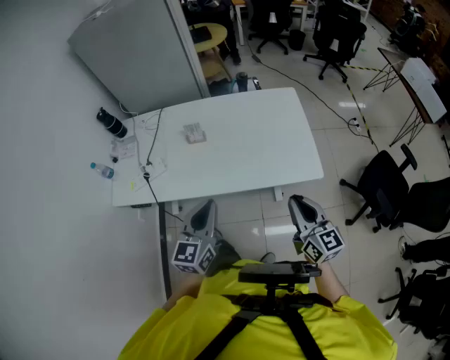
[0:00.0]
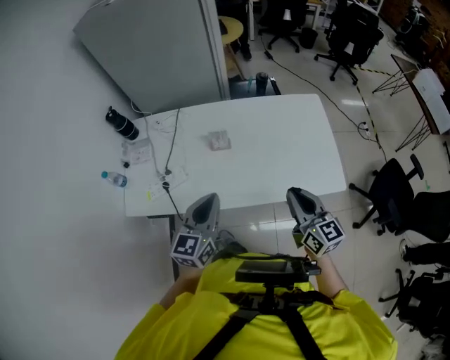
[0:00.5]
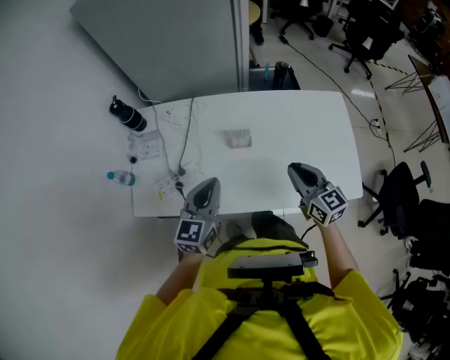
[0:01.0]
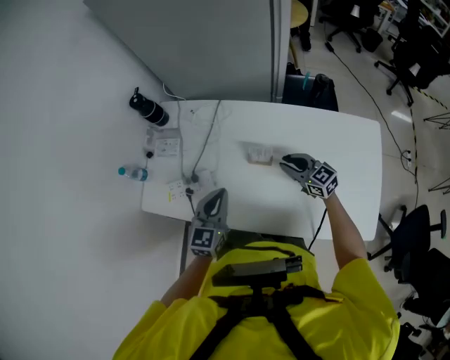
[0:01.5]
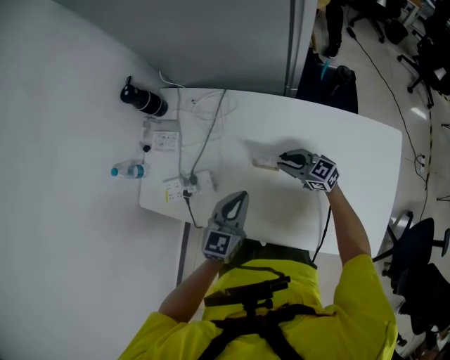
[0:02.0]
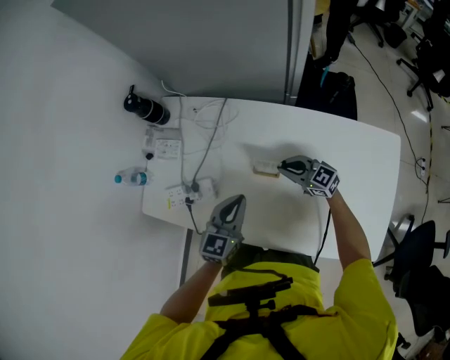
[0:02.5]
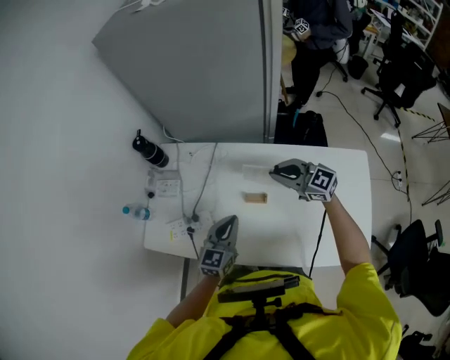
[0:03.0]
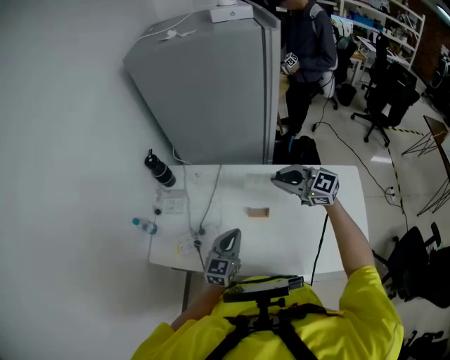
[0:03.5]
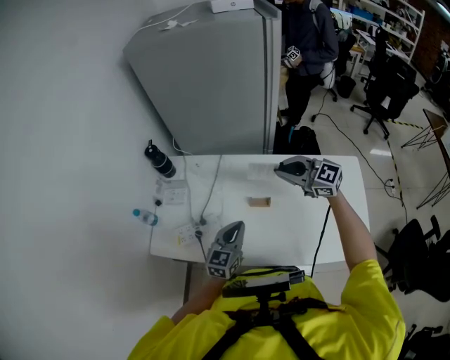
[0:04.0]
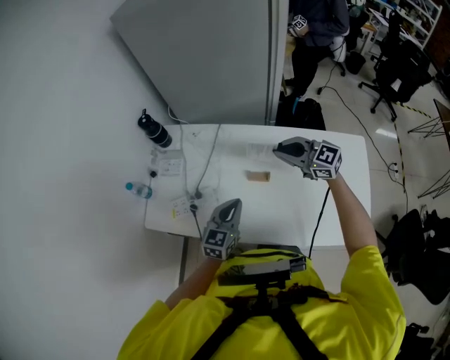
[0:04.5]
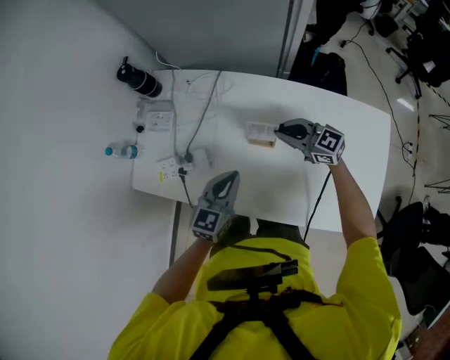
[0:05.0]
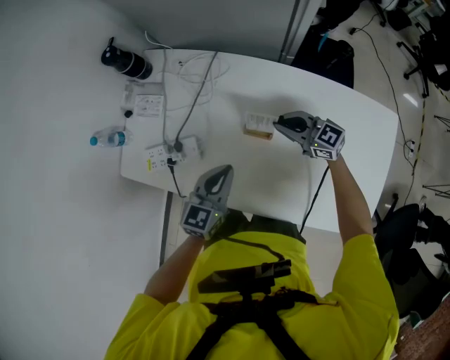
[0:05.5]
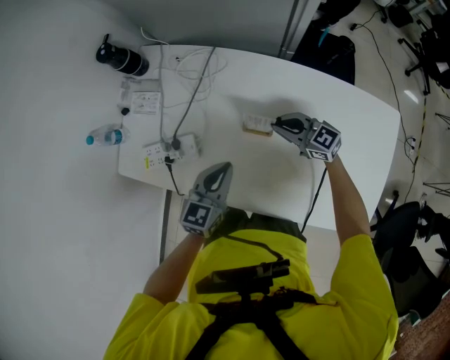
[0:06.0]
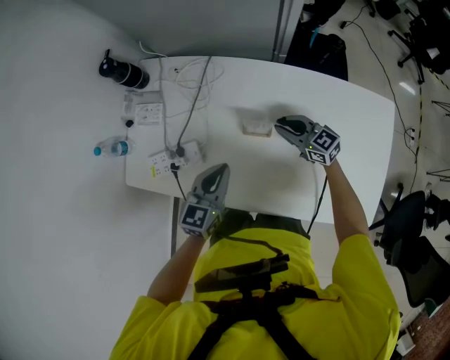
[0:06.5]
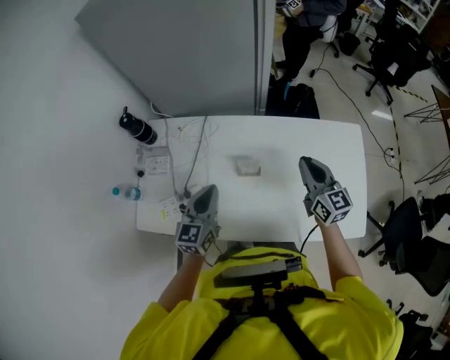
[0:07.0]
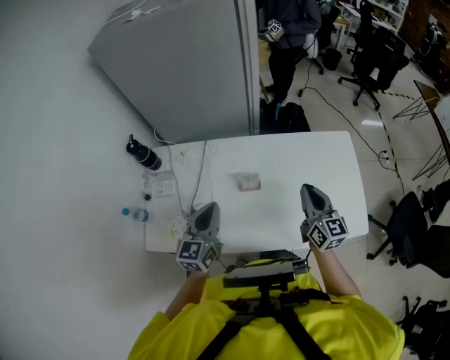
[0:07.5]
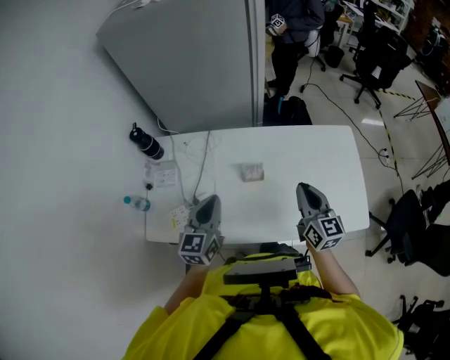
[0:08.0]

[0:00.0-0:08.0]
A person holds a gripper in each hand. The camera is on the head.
0:00.0 to 0:02.0: The left gripper ends up approximately 40 cm from where it was. The right gripper ends up roughly 60 cm from where it was, and swivels roughly 60 degrees.
0:02.0 to 0:04.0: The left gripper travels upward and to the left by about 10 cm. Meanwhile the right gripper goes some 30 cm upward, and turns by roughly 20 degrees.
0:04.0 to 0:06.0: The left gripper goes some 10 cm downward. The right gripper moves downward, about 30 cm, and changes its angle by roughly 20 degrees.
0:06.0 to 0:08.0: The grippers both shift upward by roughly 20 cm. The right gripper rotates some 70 degrees.

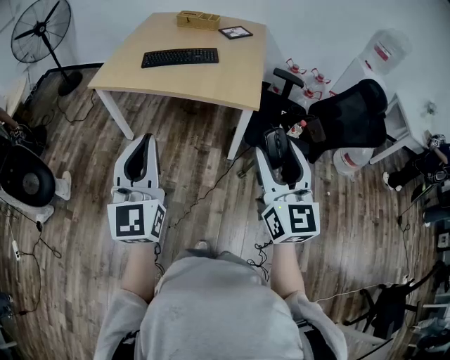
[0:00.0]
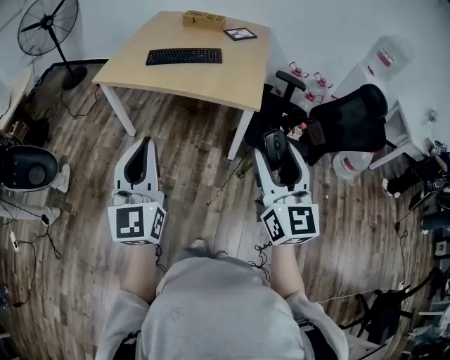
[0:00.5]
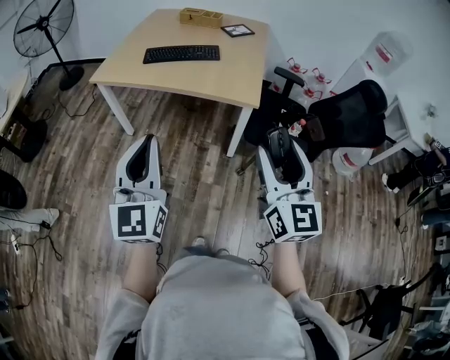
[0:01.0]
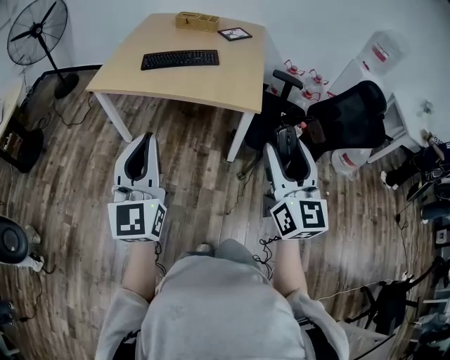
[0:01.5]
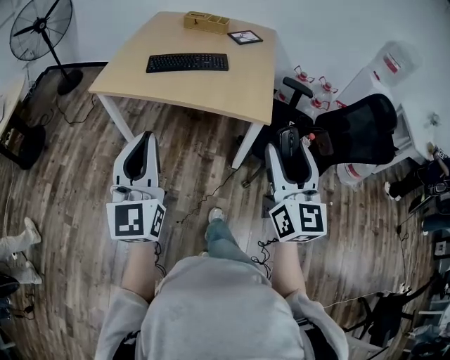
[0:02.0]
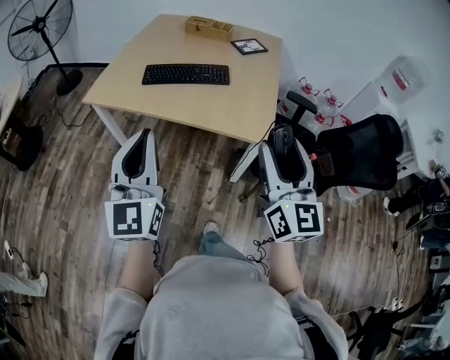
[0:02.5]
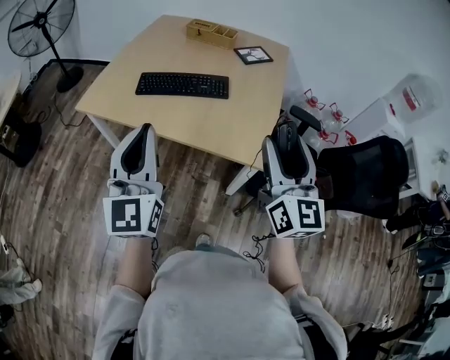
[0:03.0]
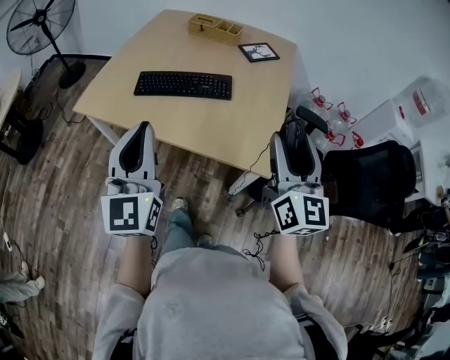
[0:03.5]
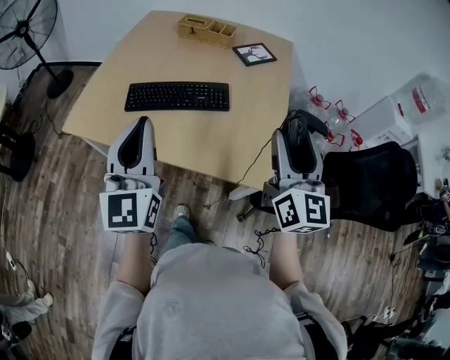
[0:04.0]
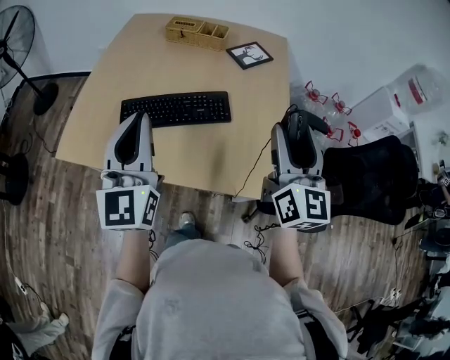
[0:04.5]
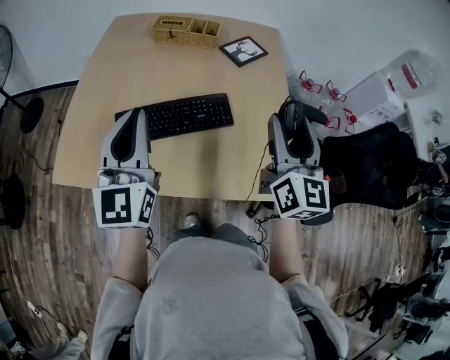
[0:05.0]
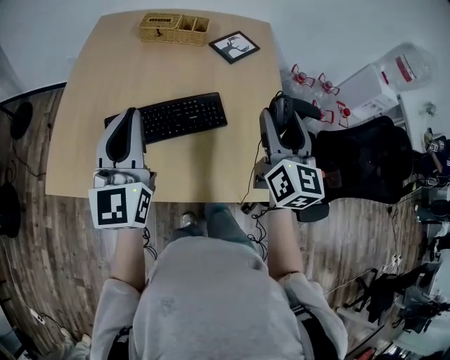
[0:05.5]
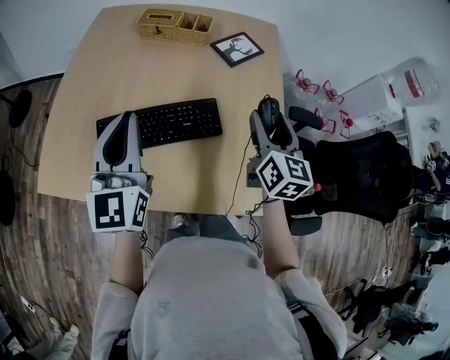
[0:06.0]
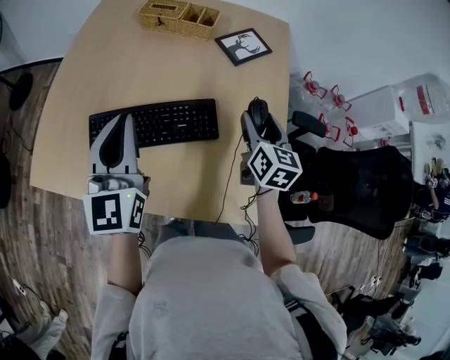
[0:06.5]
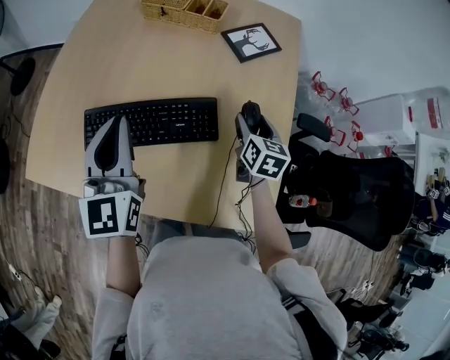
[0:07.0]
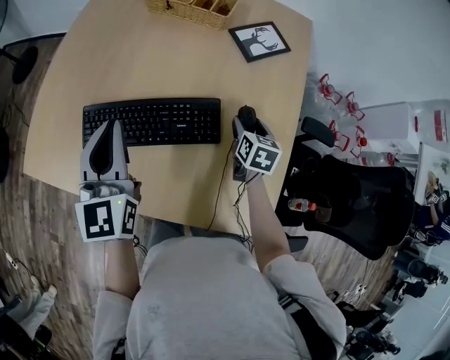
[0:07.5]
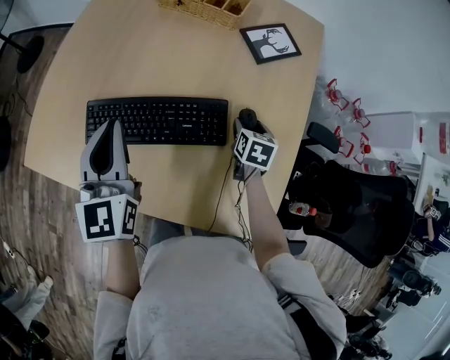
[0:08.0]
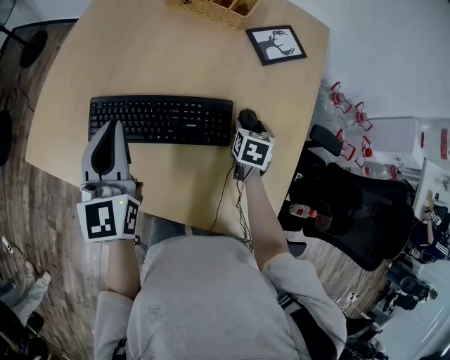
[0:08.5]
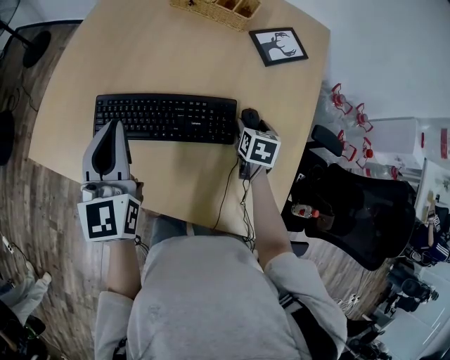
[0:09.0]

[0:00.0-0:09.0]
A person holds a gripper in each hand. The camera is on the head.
0:00.0 to 0:02.0: Both grippers travel together forward, about 10 cm.
0:02.0 to 0:04.5: Both grippers are carried forward, about 50 cm.
0:04.5 to 0:07.0: The right gripper shifts about 35 cm downward and forward, and points its fingers approximately 40 degrees further downward. The left gripper shifts some 20 cm forward and downward.
0:07.0 to 0:09.0: The right gripper heads downward, covering about 10 cm. Meanwhile the left gripper changes place by approximately 5 cm.

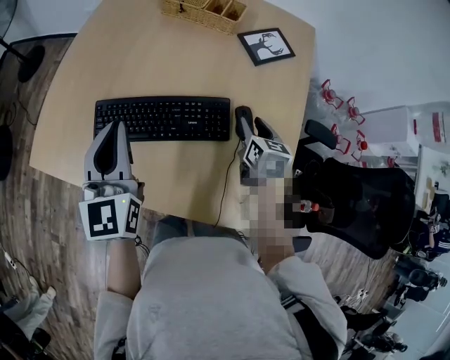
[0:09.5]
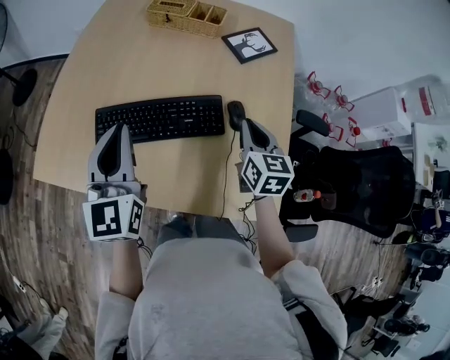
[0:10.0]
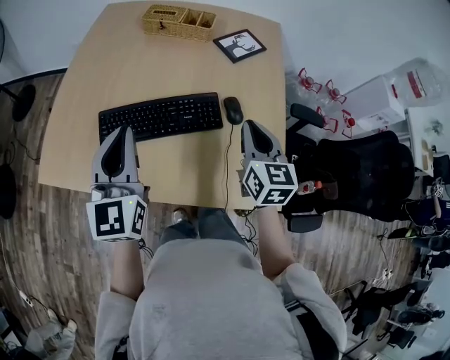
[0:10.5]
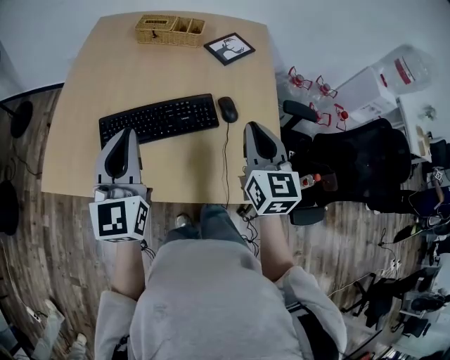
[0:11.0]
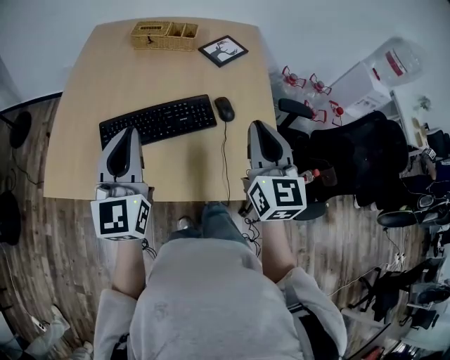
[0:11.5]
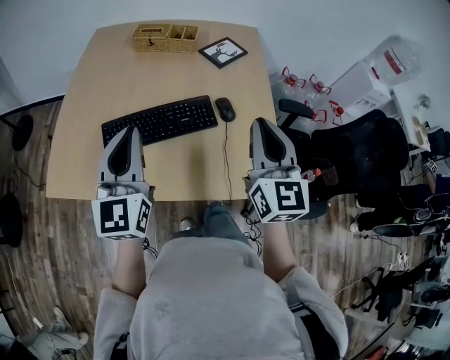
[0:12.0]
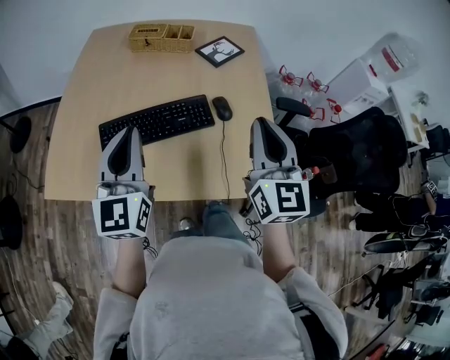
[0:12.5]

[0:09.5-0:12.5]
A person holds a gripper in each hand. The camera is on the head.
0:09.5 to 0:11.0: The left gripper shifts roughly 10 cm backward and upward; the right gripper is displaced upward and backward by about 25 cm, swivels approximately 30 degrees, and closes.
0:11.0 to 0:12.5: The right gripper is displaced upward and backward by about 10 cm.

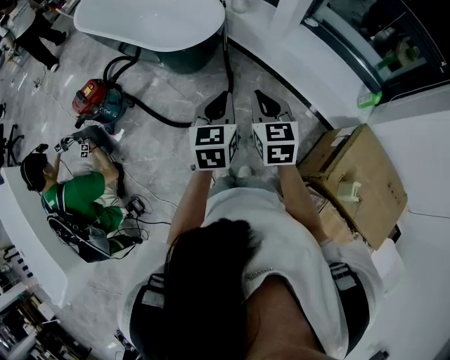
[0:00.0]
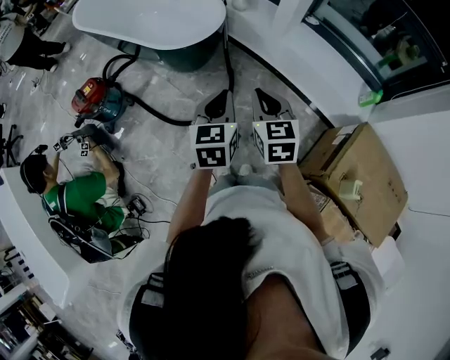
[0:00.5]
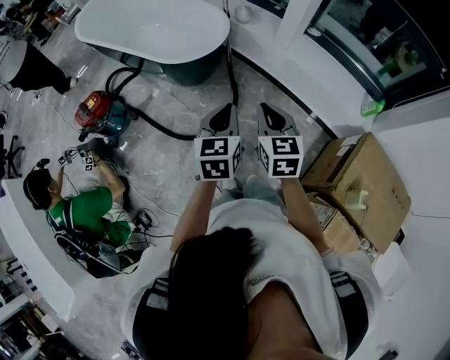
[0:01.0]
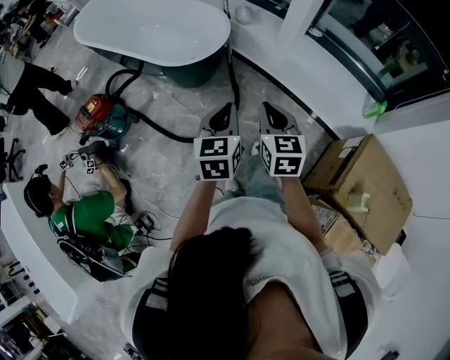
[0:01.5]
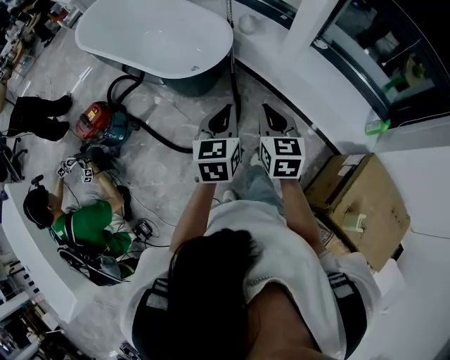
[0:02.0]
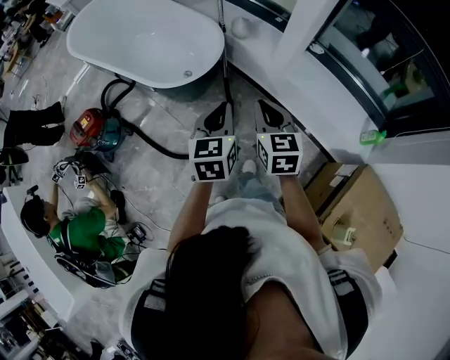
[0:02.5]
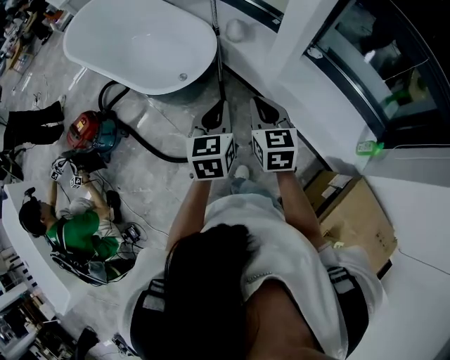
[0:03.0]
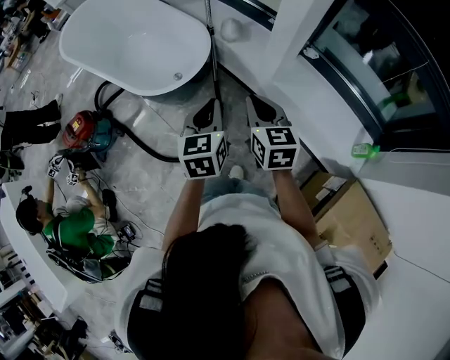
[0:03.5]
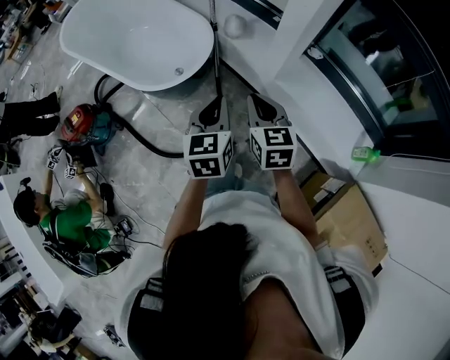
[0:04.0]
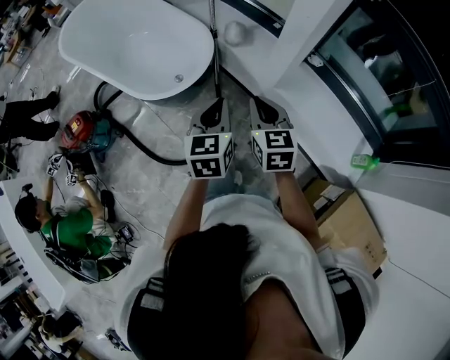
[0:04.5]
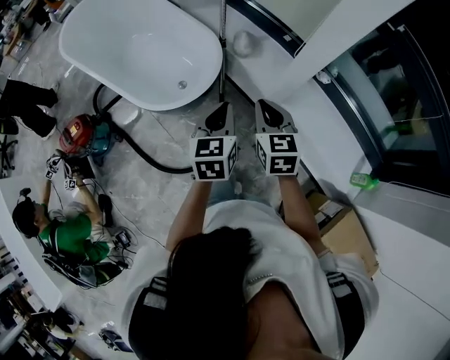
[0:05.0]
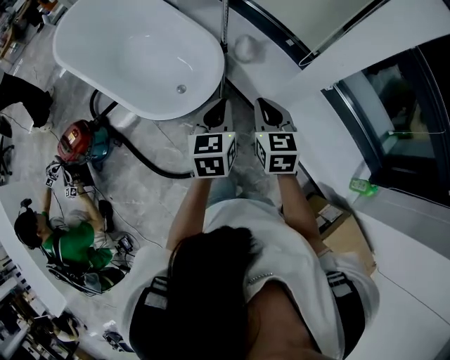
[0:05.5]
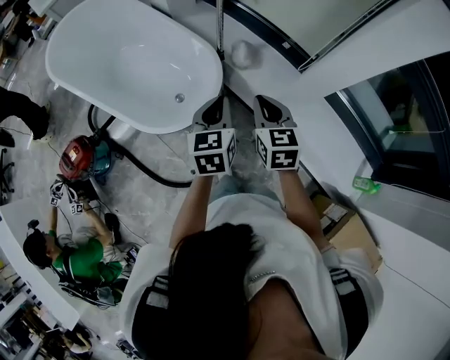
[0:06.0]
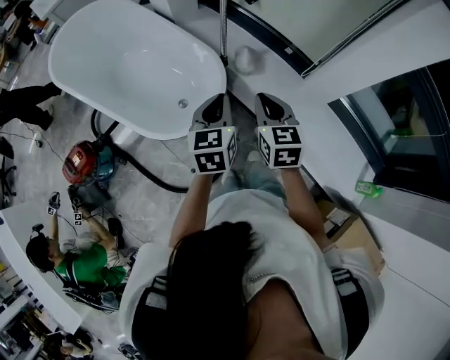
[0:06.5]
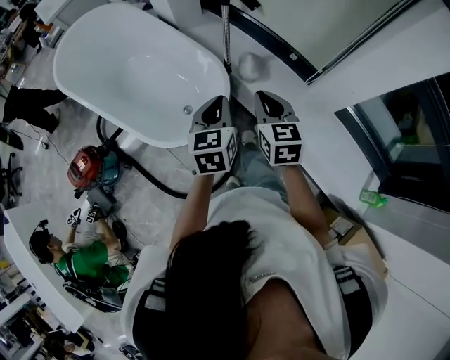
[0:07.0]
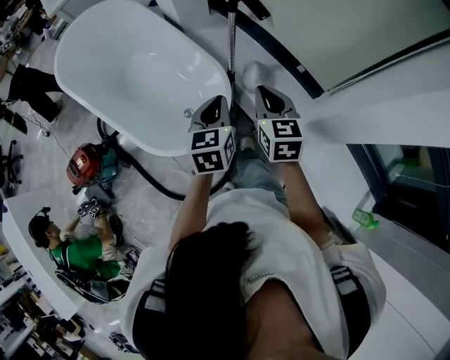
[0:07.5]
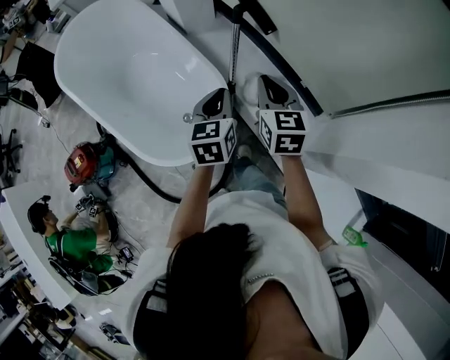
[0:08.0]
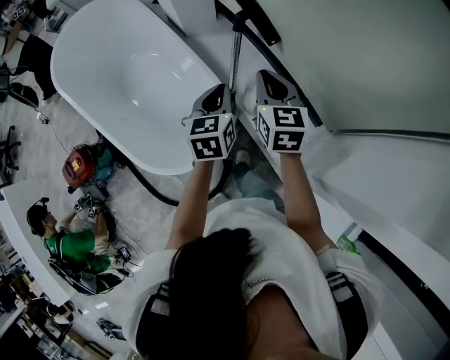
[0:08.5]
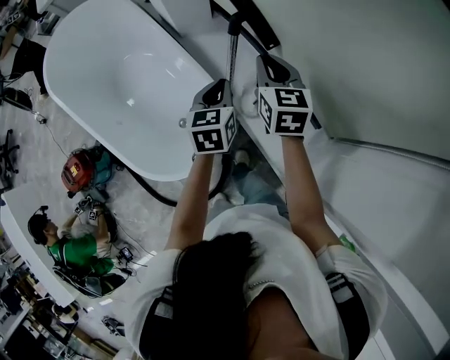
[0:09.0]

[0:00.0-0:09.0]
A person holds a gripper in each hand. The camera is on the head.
0:00.0 to 0:02.0: Both grippers travel together forward, approximately 10 cm.
0:02.0 to 0:04.5: Both grippers move forward and to the right, approximately 25 cm.
0:04.5 to 0:07.0: The two grippers go some 25 cm forward.
0:07.0 to 0:09.0: Both grippers travel together forward, roughly 30 cm.
